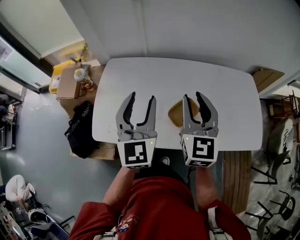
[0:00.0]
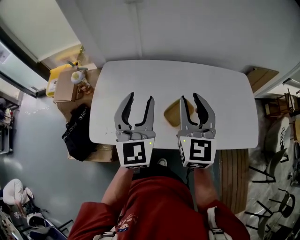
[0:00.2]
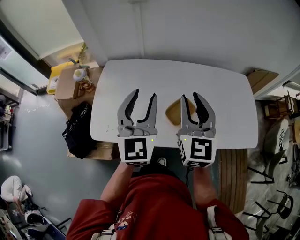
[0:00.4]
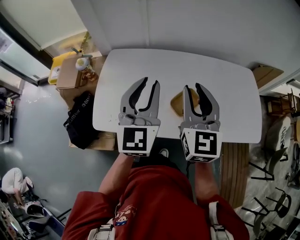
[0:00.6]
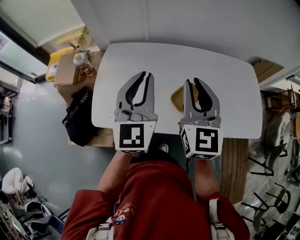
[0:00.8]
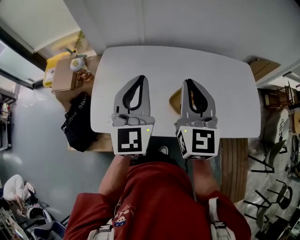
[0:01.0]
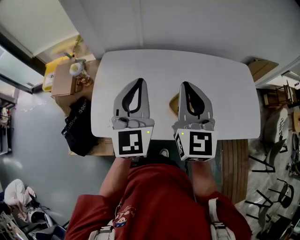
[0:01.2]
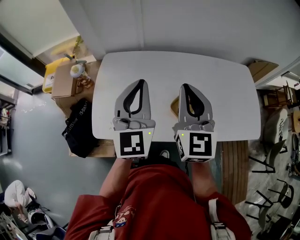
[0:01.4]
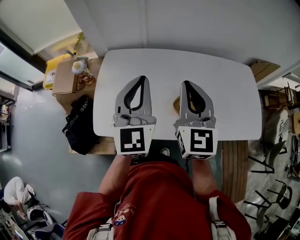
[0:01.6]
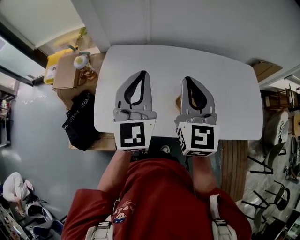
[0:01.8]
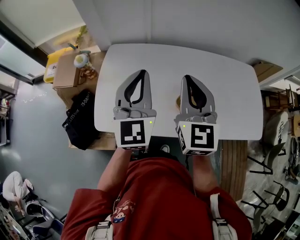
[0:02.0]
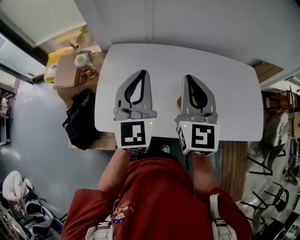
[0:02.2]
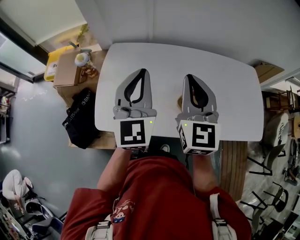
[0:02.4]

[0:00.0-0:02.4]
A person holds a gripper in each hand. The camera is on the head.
0:00.0 to 0:01.2: The left gripper closes up. Meanwhile the right gripper moves some 5 cm, and closes.
0:01.2 to 0:02.4: The grippers make only small movements.

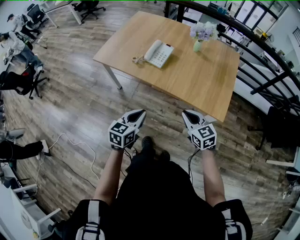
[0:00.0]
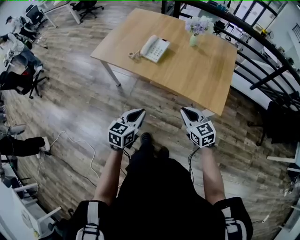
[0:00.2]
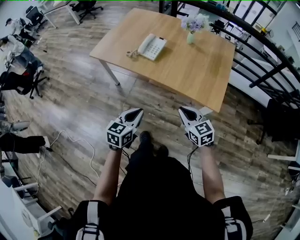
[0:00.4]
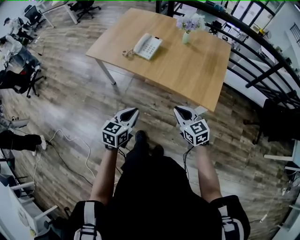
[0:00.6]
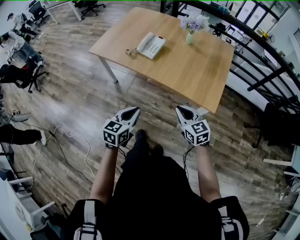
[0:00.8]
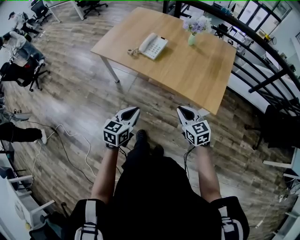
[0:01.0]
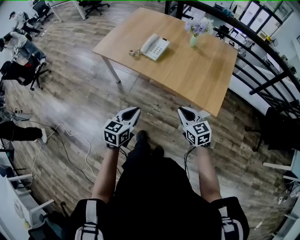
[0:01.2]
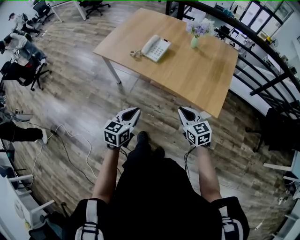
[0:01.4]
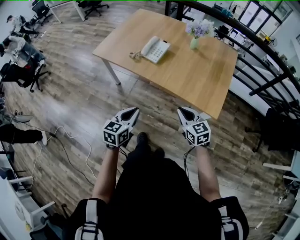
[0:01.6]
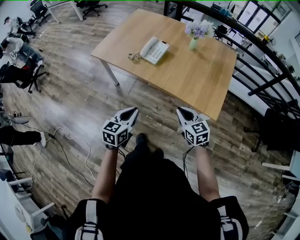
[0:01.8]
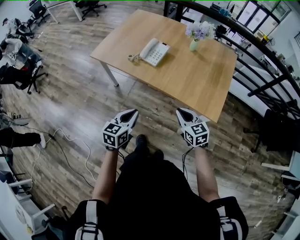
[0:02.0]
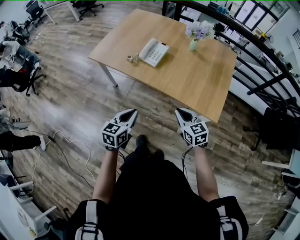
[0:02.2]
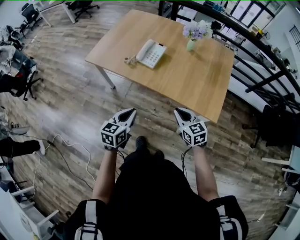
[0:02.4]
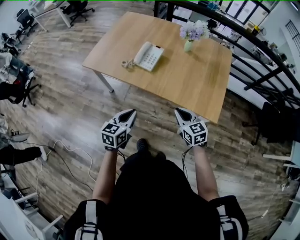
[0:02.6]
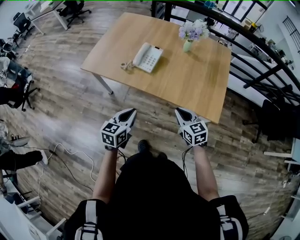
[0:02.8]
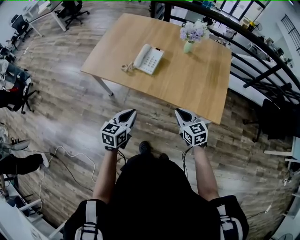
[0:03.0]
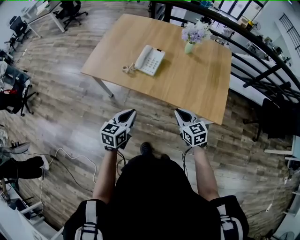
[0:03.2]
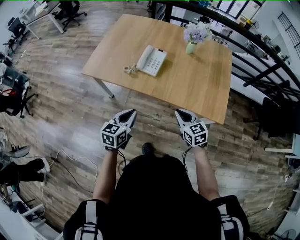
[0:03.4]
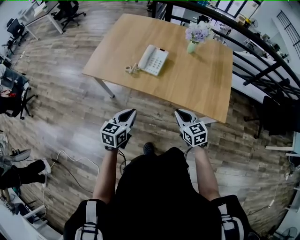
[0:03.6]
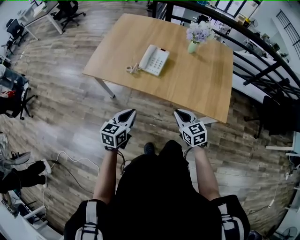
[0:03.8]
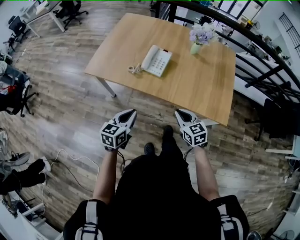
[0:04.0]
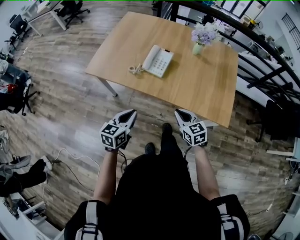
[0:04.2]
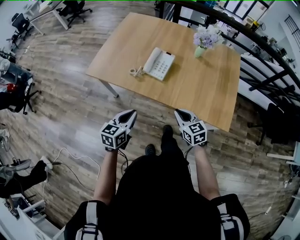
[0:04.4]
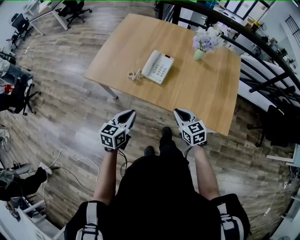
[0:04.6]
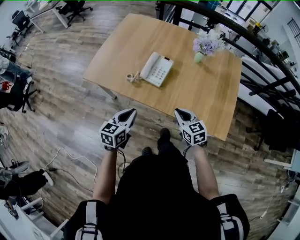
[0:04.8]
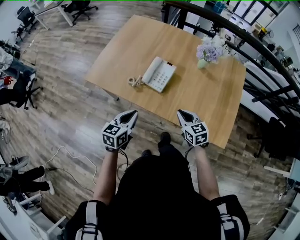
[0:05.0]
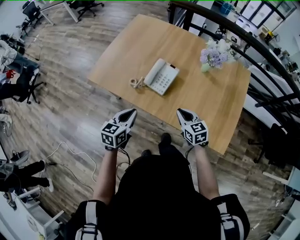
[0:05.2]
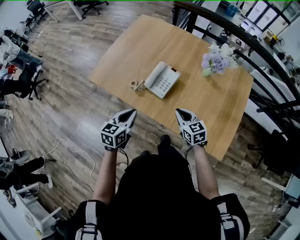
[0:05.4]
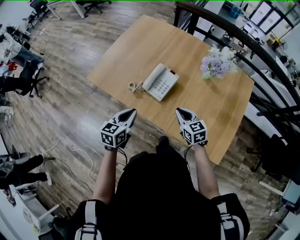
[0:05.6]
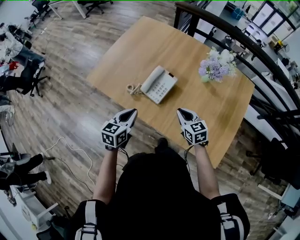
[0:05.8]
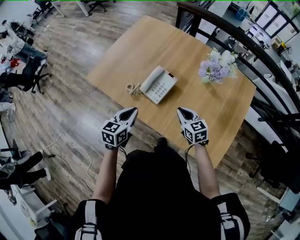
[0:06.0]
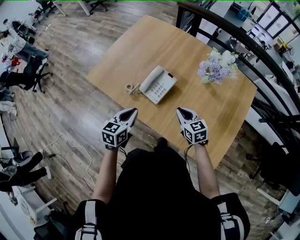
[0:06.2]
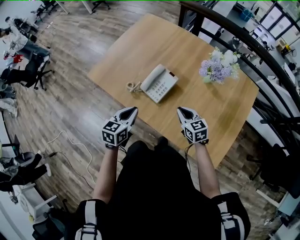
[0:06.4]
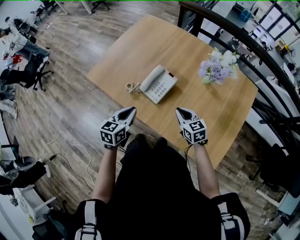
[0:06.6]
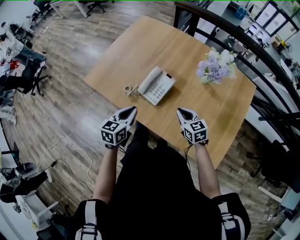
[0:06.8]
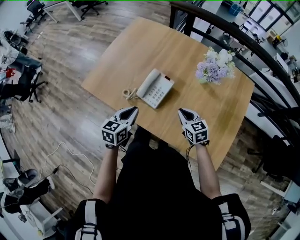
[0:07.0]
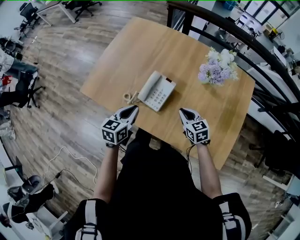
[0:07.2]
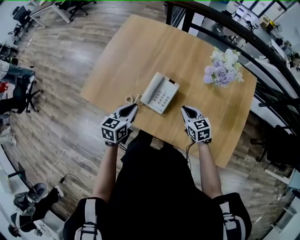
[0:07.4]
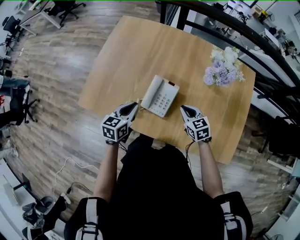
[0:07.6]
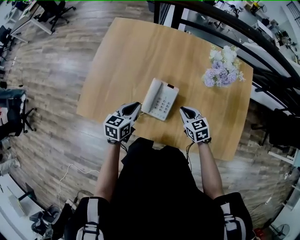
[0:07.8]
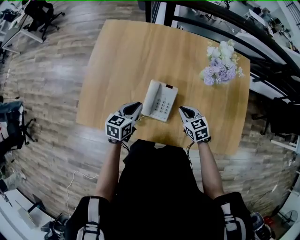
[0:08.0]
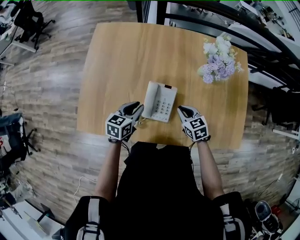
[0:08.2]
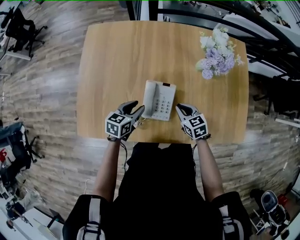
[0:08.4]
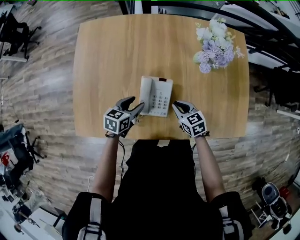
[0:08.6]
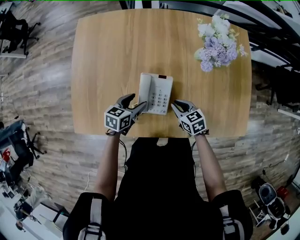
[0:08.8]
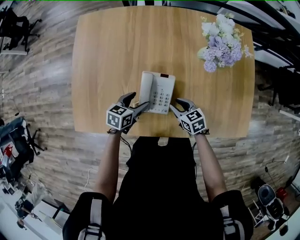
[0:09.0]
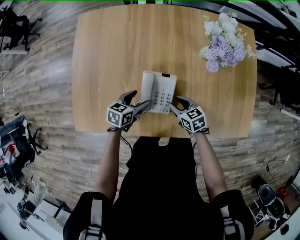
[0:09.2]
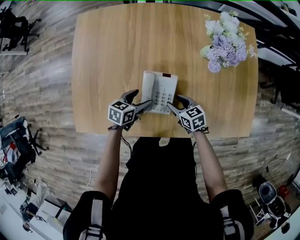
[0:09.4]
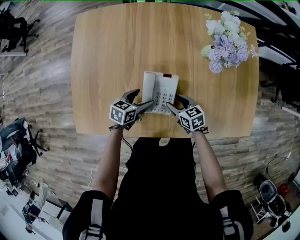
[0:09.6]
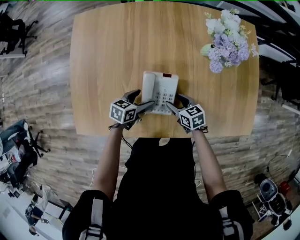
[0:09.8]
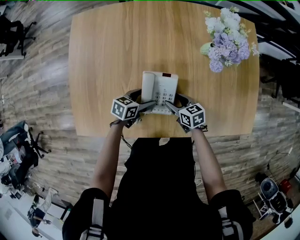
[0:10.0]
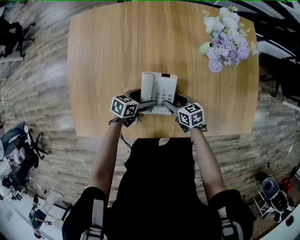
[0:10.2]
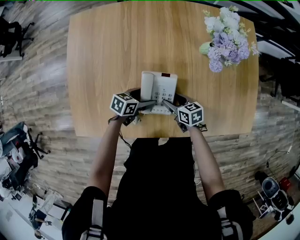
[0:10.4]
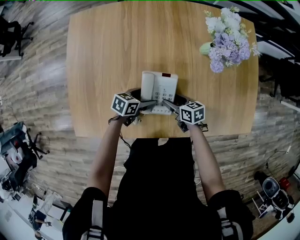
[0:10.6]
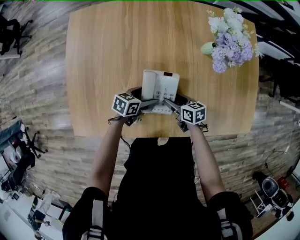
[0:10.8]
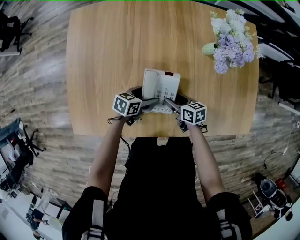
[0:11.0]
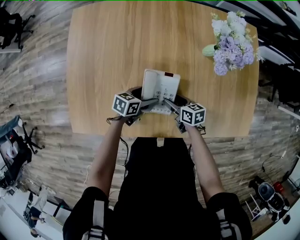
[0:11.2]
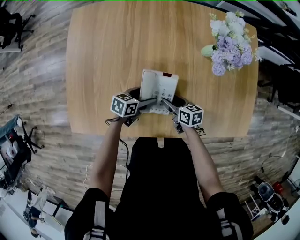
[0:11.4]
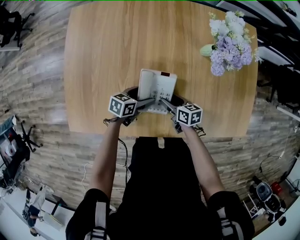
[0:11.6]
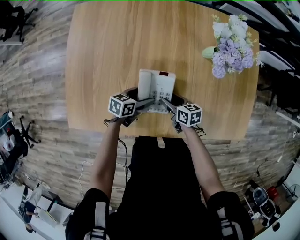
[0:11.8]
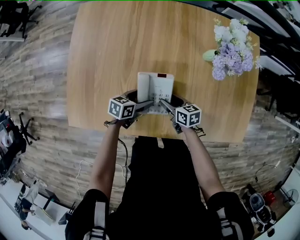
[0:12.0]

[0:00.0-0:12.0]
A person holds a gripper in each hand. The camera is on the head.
0:01.6 to 0:03.0: The two grippers go roughly 10 cm forward.
0:03.0 to 0:04.4: The two grippers go some 10 cm to the left and forward.
0:04.4 to 0:06.0: The left gripper heads forward and to the right, covering some 20 cm, while the right gripper travels forward by about 20 cm.
0:06.0 to 0:07.6: The right gripper moves forward, about 10 cm. Meanwhile the left gripper is displaced forward by about 15 cm.
0:07.6 to 0:09.0: The right gripper goes roughly 10 cm downward, and opens its fingers. Meanwhile the left gripper heads downward and forward, covering some 15 cm, changes its angle by roughly 30 degrees, and opens its fingers.
0:09.0 to 0:10.4: The left gripper moves downward, approximately 5 cm. Meanwhile the right gripper moves some 5 cm, and opens its fingers.
0:10.4 to 0:12.0: The grippers move only a little.

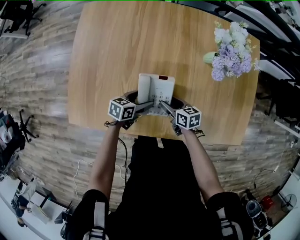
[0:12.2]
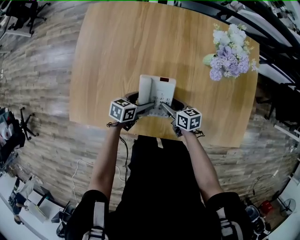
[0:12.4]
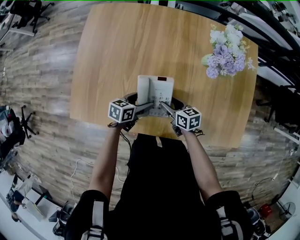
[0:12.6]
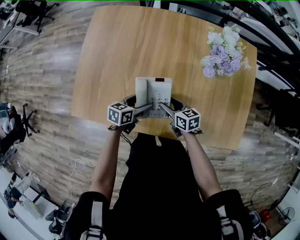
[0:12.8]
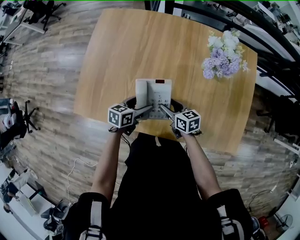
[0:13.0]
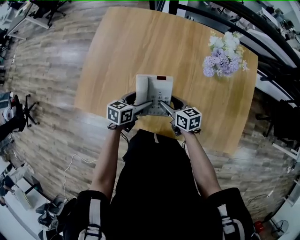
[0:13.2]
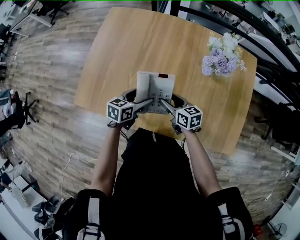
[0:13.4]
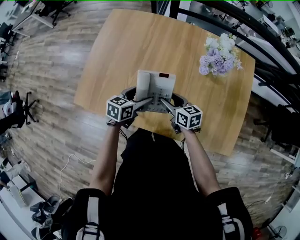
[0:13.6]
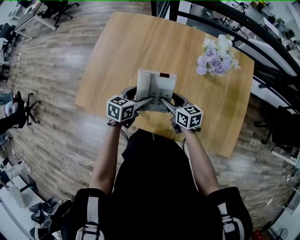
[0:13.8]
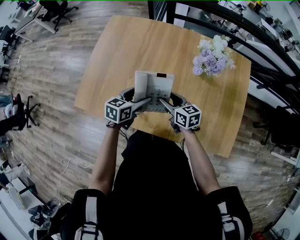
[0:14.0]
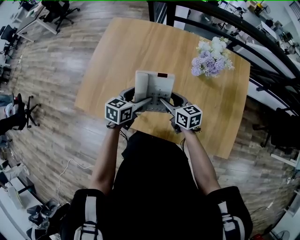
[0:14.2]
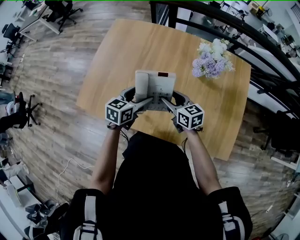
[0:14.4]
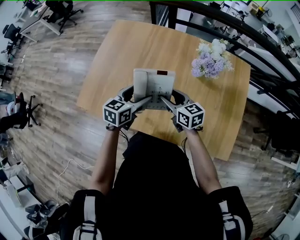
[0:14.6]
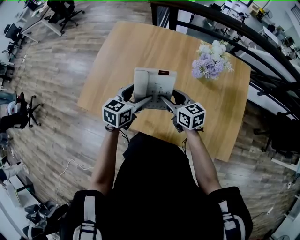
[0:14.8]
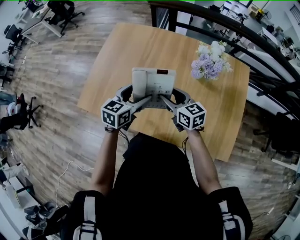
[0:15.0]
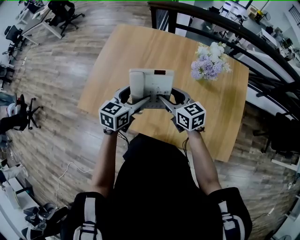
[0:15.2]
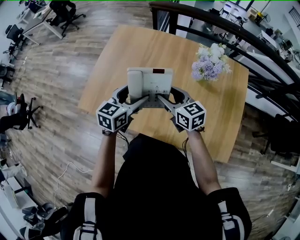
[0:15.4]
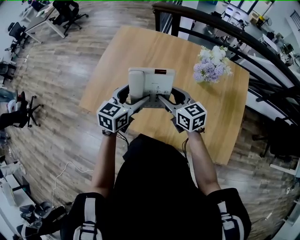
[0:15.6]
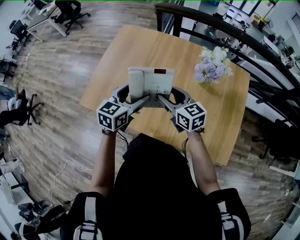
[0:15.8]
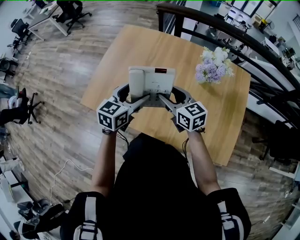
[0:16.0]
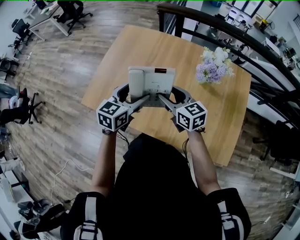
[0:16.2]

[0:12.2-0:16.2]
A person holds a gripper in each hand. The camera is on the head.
0:12.2 to 0:13.6: Both grippers move upward, roughly 15 cm. The left gripper rotates roughly 20 degrees.
0:13.6 to 0:14.8: Both grippers move upward, approximately 10 cm.
0:14.8 to 0:16.2: Both grippers move upward, approximately 5 cm.

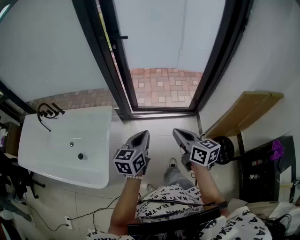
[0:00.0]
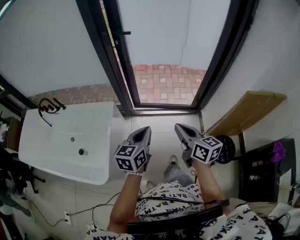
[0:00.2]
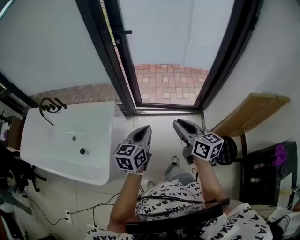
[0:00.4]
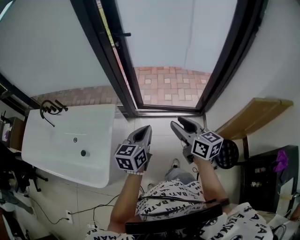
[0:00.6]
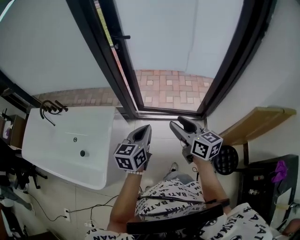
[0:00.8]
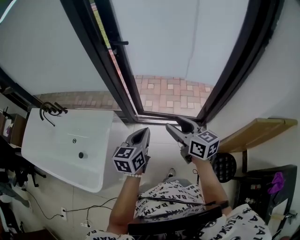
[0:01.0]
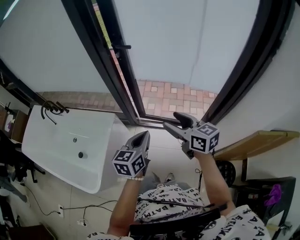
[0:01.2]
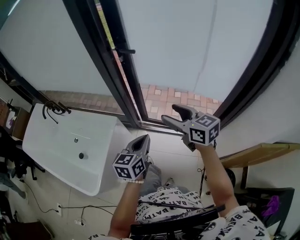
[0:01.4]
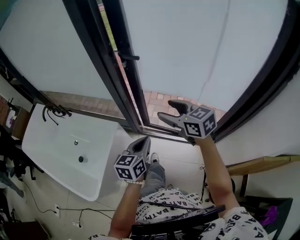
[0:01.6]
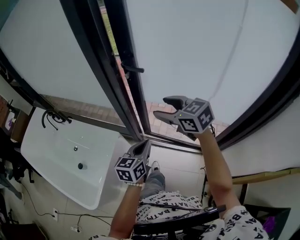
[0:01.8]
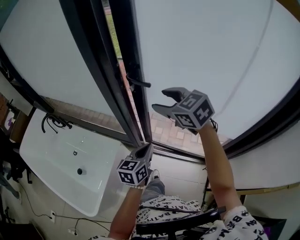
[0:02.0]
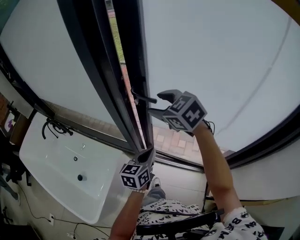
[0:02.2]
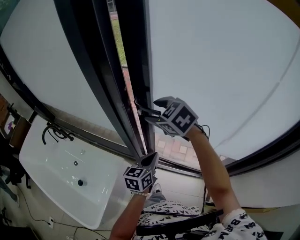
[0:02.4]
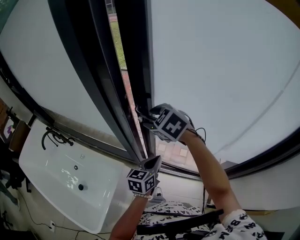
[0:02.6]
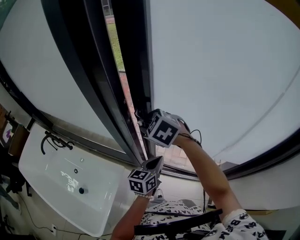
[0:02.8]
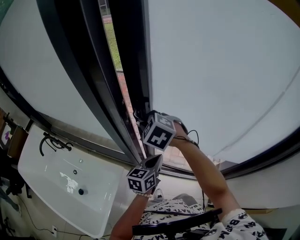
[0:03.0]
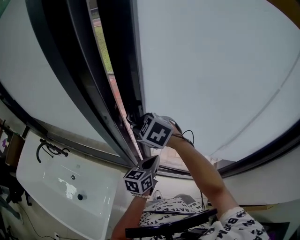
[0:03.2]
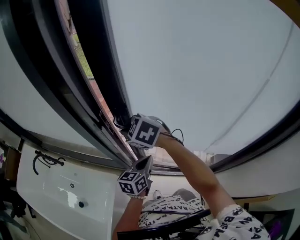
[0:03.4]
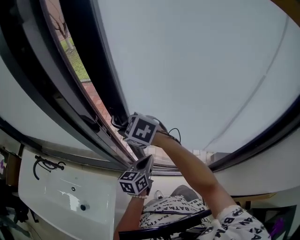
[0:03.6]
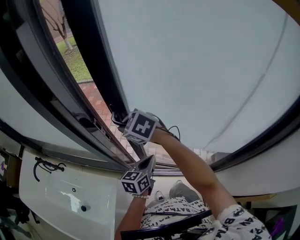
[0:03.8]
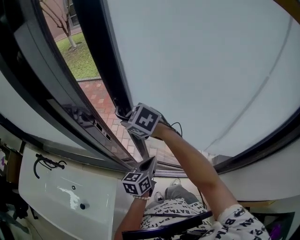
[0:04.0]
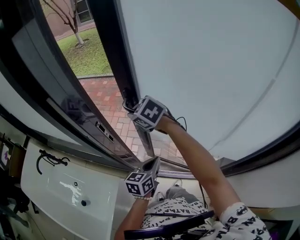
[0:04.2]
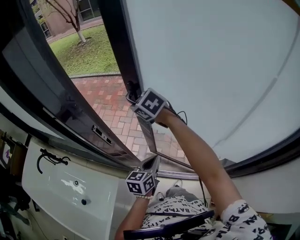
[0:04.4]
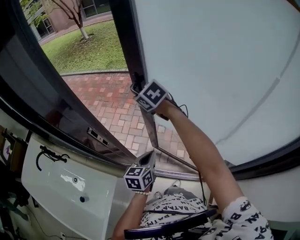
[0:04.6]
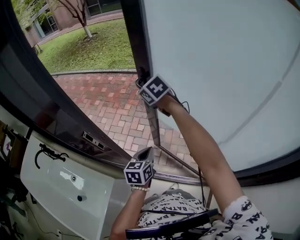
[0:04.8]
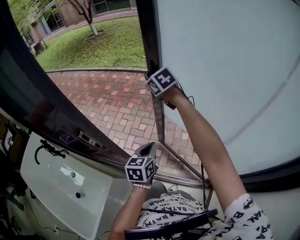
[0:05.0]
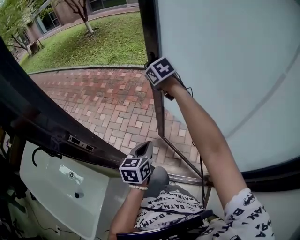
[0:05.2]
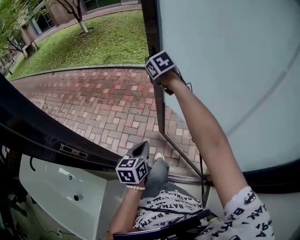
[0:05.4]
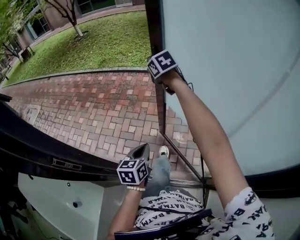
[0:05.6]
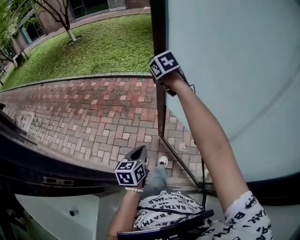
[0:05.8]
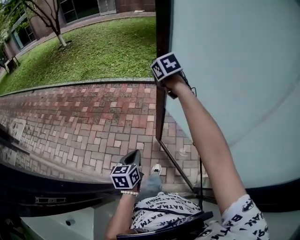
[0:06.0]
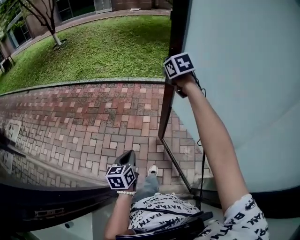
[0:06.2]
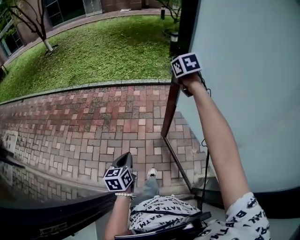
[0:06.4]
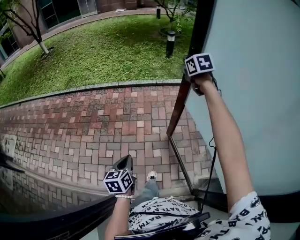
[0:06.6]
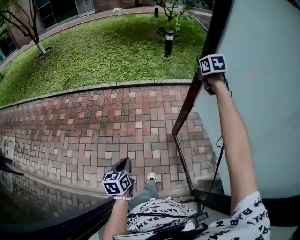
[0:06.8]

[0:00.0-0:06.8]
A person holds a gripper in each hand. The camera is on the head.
0:00.0 to 0:01.4: The left gripper heads forward, covering approximately 20 cm. The right gripper moves forward, approximately 25 cm, rotates approximately 30 degrees, and opens.
0:01.4 to 0:02.8: The left gripper travels forward by some 25 cm. The right gripper shifts some 35 cm forward and to the left, tilts its fingers about 30 degrees downward, and closes its fingers.
0:02.8 to 0:04.0: The left gripper shifts some 5 cm forward. The right gripper is displaced forward by roughly 10 cm, and closes its fingers.
0:04.0 to 0:05.4: The right gripper travels forward and to the right by some 40 cm, and swivels some 30 degrees. Meanwhile the left gripper moves forward and to the right, some 15 cm.
0:05.4 to 0:06.8: The right gripper heads to the right and forward, covering approximately 50 cm, and rotates roughly 40 degrees, while the left gripper moves forward and downward, some 25 cm.
